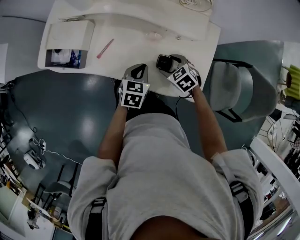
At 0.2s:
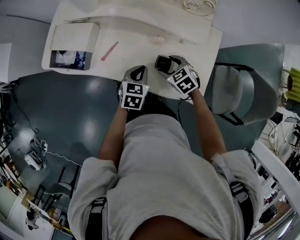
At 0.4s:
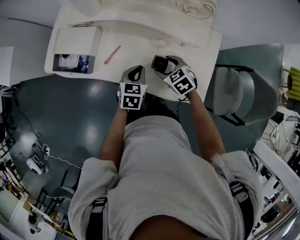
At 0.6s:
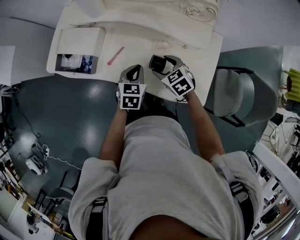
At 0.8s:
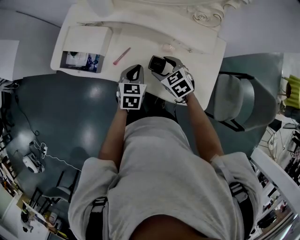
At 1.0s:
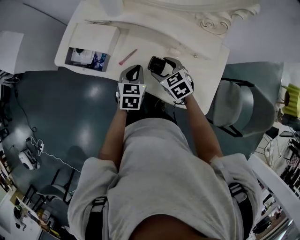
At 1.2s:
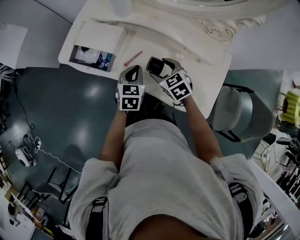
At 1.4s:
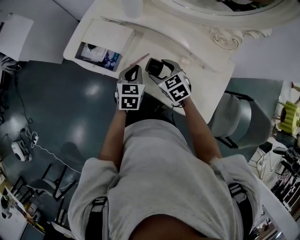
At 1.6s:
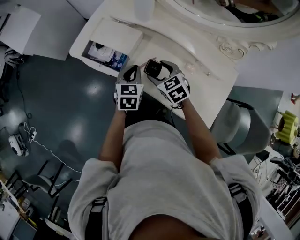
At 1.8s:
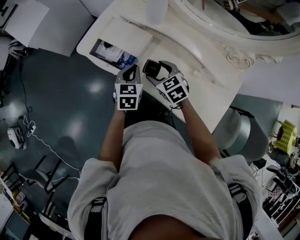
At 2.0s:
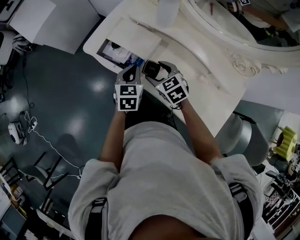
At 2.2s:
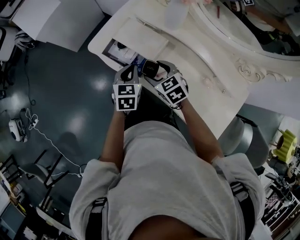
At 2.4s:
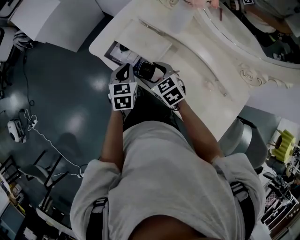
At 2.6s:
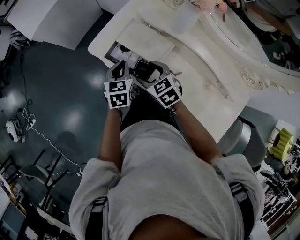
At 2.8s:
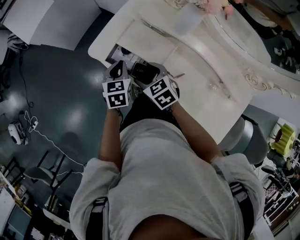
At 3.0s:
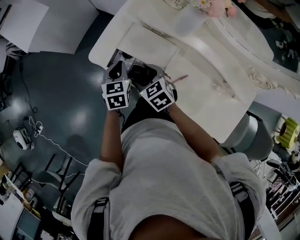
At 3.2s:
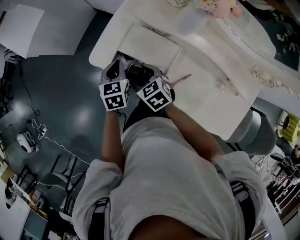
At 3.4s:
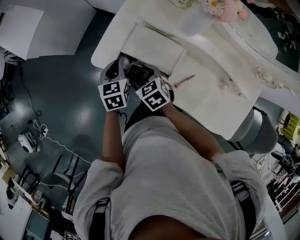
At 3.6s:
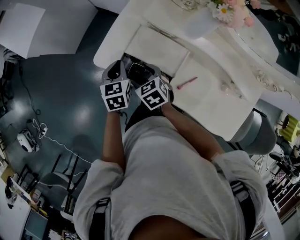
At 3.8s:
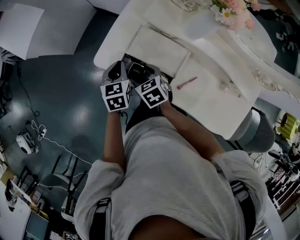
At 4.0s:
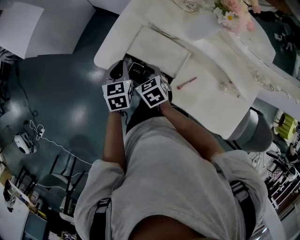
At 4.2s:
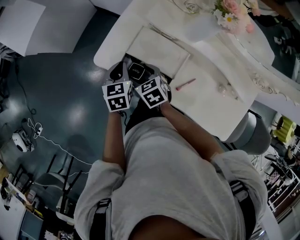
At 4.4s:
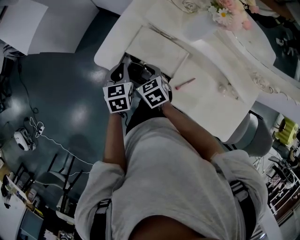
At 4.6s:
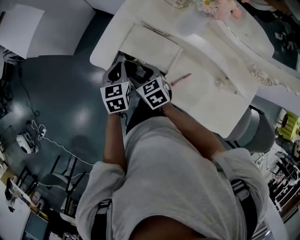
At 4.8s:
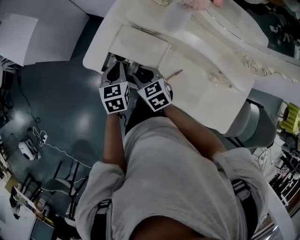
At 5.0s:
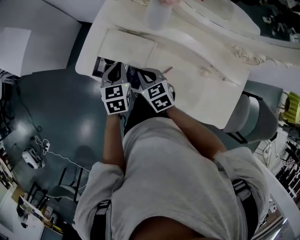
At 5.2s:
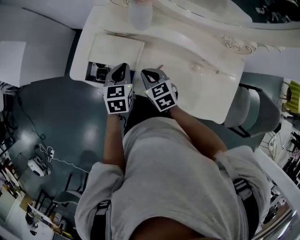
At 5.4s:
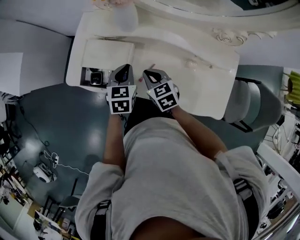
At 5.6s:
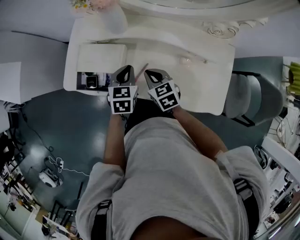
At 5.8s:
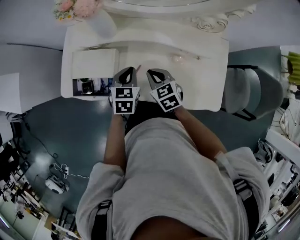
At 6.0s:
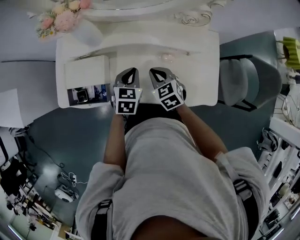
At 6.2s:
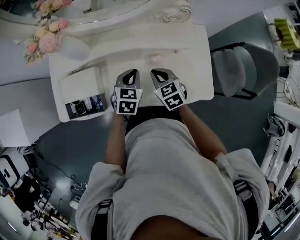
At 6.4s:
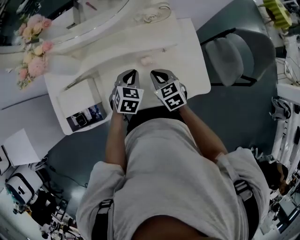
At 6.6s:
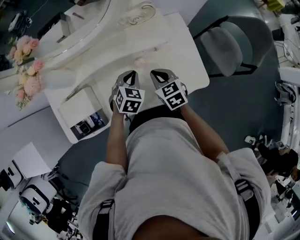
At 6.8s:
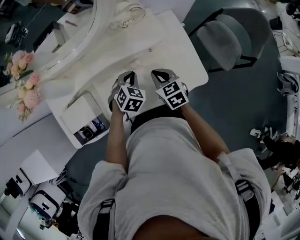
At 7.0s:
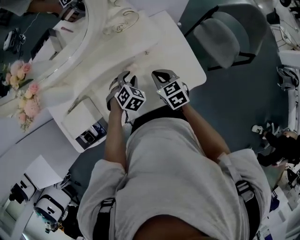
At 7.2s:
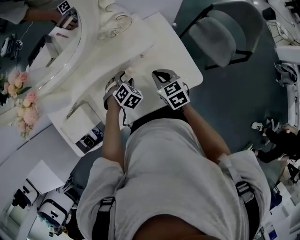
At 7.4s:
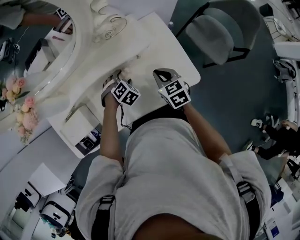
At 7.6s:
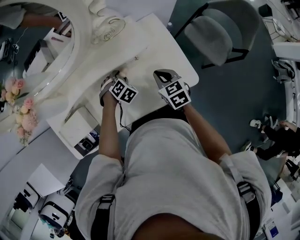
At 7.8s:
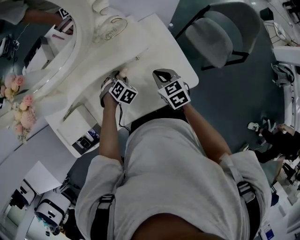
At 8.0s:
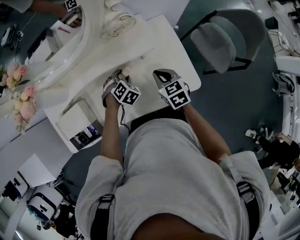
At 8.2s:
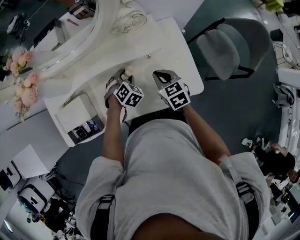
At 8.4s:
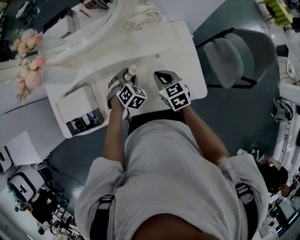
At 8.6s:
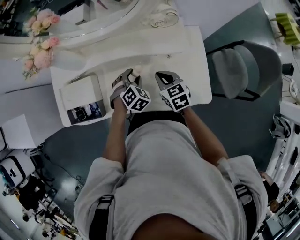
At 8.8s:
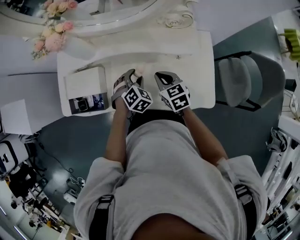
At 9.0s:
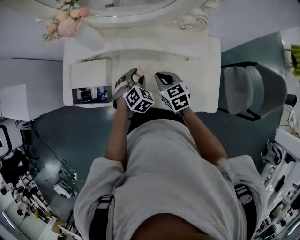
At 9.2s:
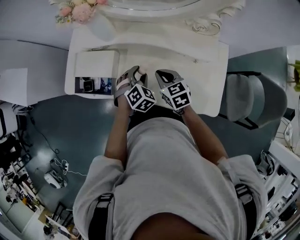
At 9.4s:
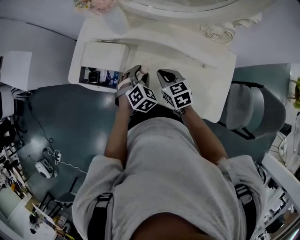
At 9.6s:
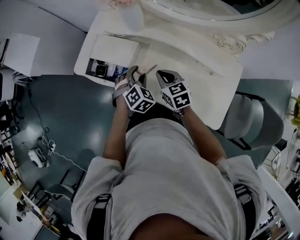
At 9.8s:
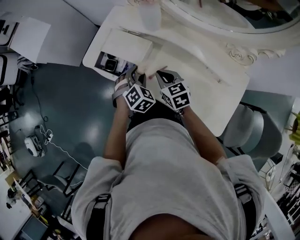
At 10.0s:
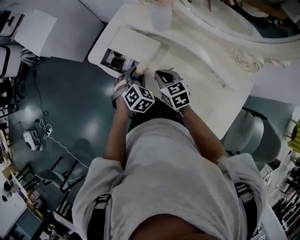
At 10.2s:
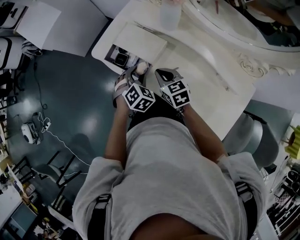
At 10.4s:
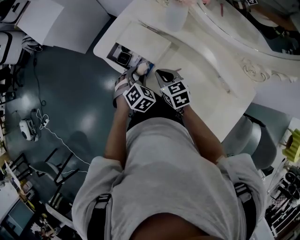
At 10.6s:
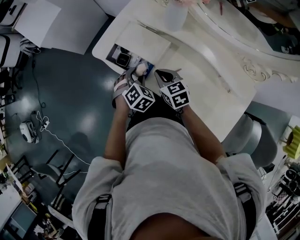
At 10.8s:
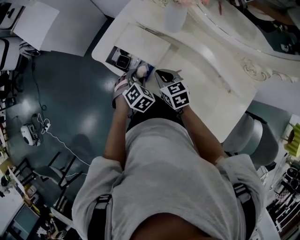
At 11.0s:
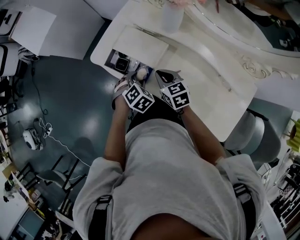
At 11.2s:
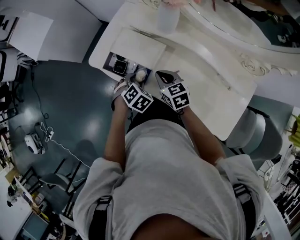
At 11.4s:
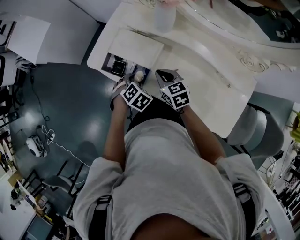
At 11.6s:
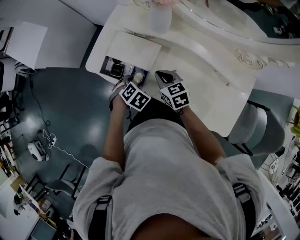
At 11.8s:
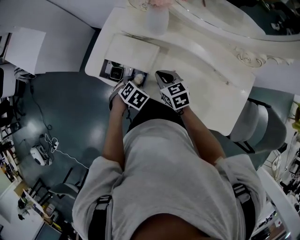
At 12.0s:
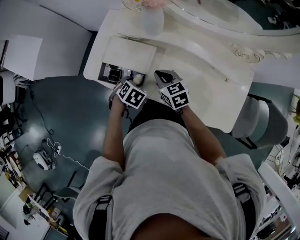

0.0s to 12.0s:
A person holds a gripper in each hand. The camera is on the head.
0.0s to 1.6s: The left gripper shifts some 25 cm to the left and forward, and swivels some 30 degrees. The right gripper moves to the left, upward and forward, roughly 25 cm.
1.6s to 3.0s: The left gripper goes about 25 cm forward and to the left. The right gripper goes roughly 25 cm to the left and forward.
3.0s to 4.4s: The right gripper ends up about 5 cm from where it was.
4.4s to 6.0s: The left gripper moves roughly 40 cm, and rotates about 50 degrees. Meanwhile the right gripper shifts by roughly 40 cm, changes its angle by about 30 degrees, and closes its fingers.
6.0s to 7.6s: The right gripper is displaced to the right by approximately 25 cm, and changes its angle by about 40 degrees; the left gripper goes approximately 20 cm to the right, downward and forward, rotates around the line of its fingers by roughly 60 degrees, clockwise from behind, and opens up.
7.6s to 9.0s: The right gripper shifts by some 20 cm, and turns by approximately 30 degrees, while the left gripper shifts by some 15 cm, and turns by some 40 degrees.
9.0s to 10.4s: The left gripper changes place by roughly 25 cm, and turns by roughly 30 degrees. The right gripper shifts by approximately 25 cm, and turns by roughly 30 degrees.
10.4s to 12.0s: The right gripper changes place by approximately 5 cm. Meanwhile the left gripper moves downward, roughly 5 cm, and changes its angle by roughly 30 degrees.

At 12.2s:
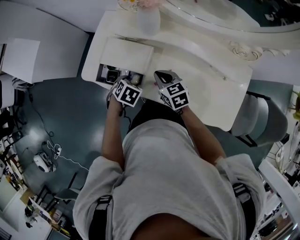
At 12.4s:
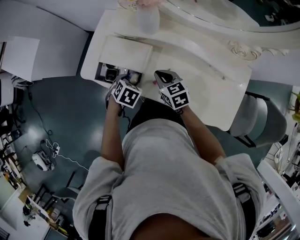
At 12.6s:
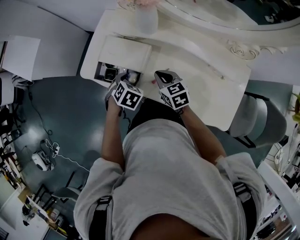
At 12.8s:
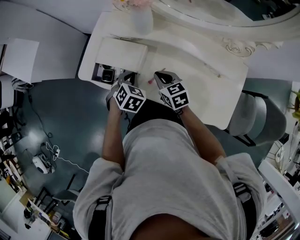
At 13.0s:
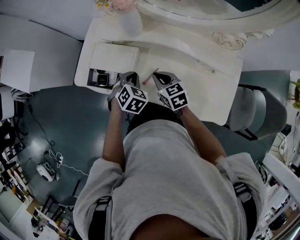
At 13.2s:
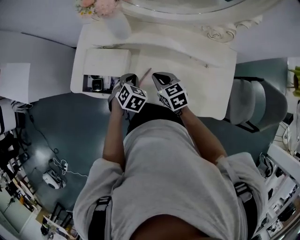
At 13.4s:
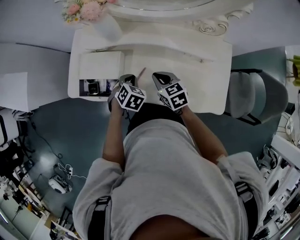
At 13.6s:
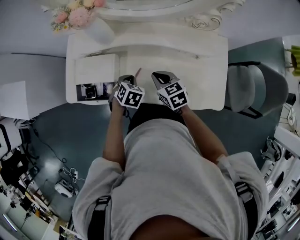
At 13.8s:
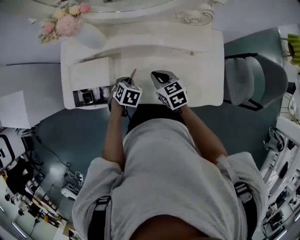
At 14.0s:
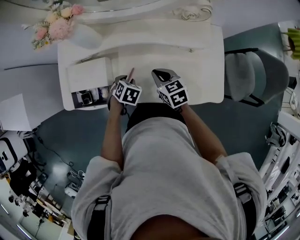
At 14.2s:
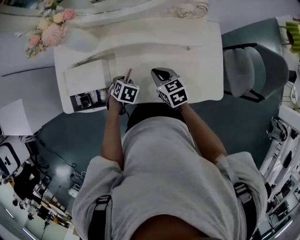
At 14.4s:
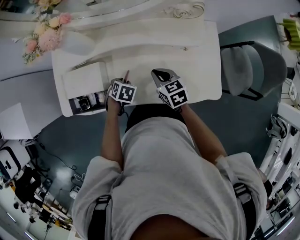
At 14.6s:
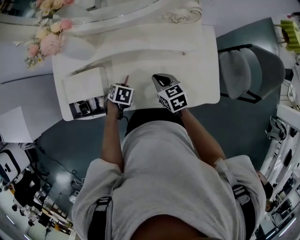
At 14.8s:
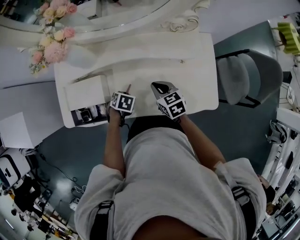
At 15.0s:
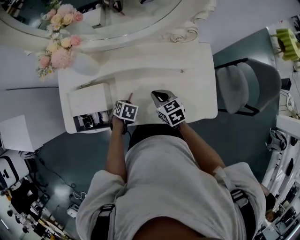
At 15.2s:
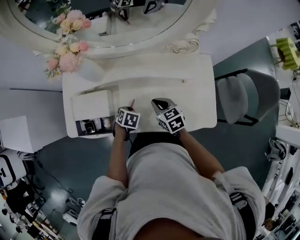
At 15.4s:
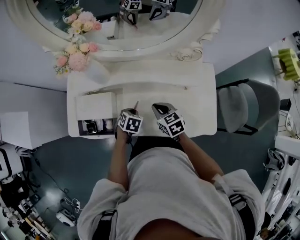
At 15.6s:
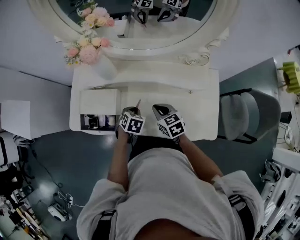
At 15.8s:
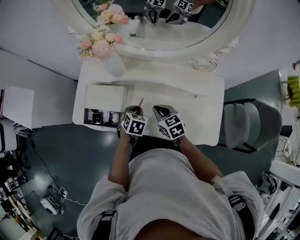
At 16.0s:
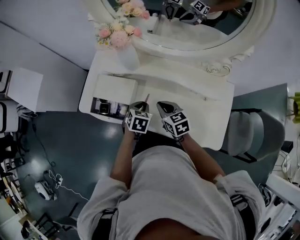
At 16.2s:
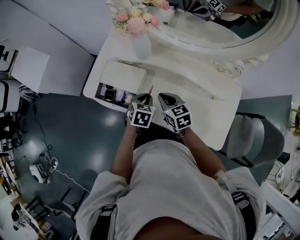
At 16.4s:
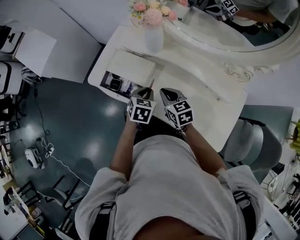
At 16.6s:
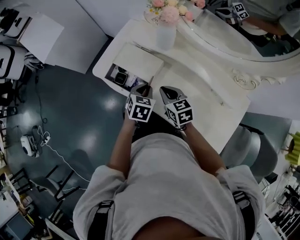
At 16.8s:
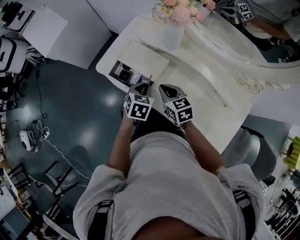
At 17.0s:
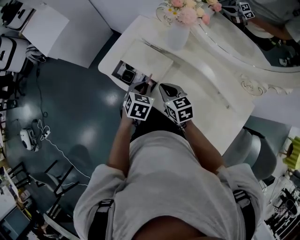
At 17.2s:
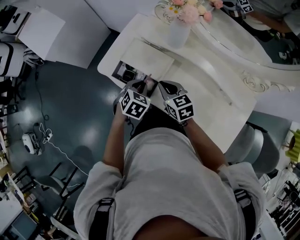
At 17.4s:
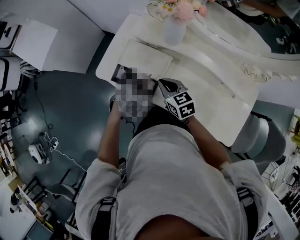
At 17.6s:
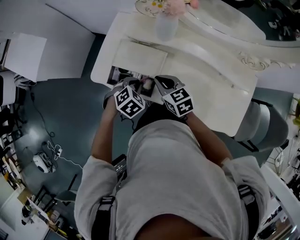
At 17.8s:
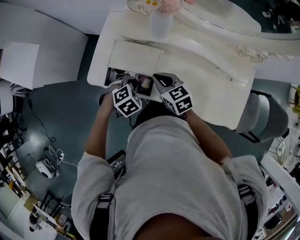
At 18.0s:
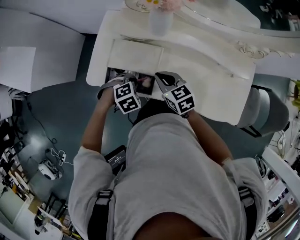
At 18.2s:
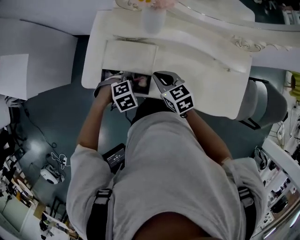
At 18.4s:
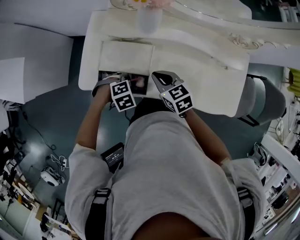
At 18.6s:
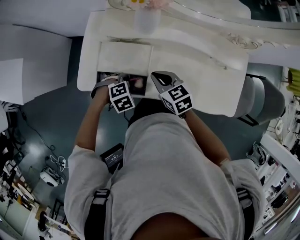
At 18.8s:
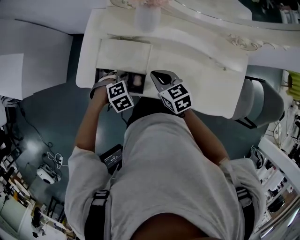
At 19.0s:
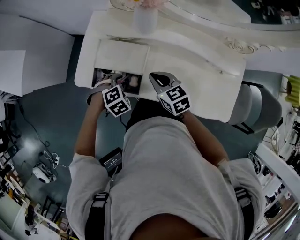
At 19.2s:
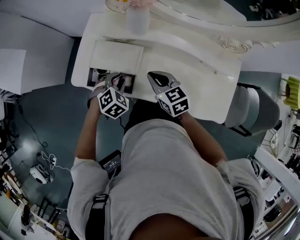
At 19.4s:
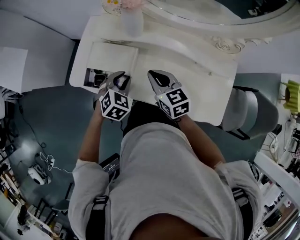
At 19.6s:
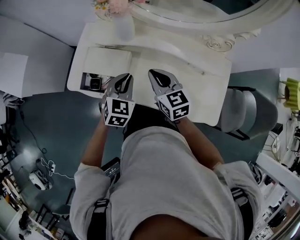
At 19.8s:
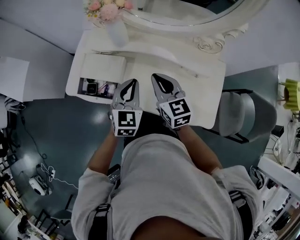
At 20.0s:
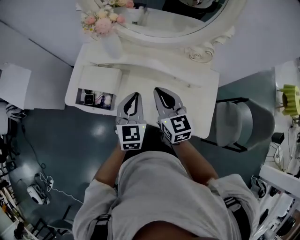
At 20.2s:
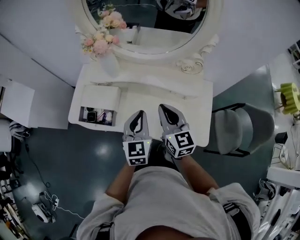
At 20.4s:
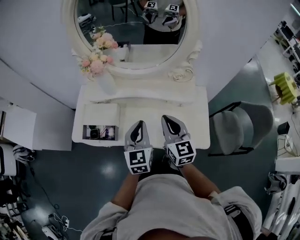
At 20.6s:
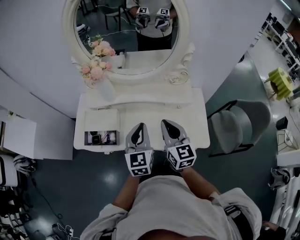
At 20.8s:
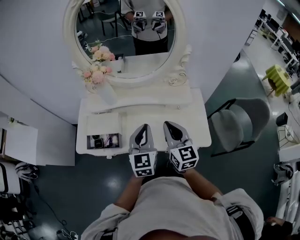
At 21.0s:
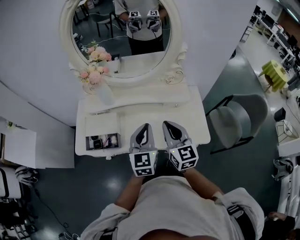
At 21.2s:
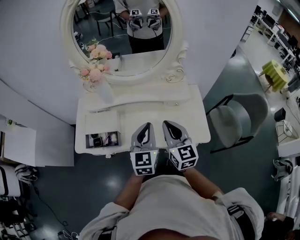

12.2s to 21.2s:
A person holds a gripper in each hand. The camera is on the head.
12.2s to 13.8s: The left gripper moves about 5 cm upward and comes back, and closes up, while the right gripper shifts by approximately 15 cm.
13.8s to 15.2s: There are only small adjustments of the grippers.
15.2s to 16.6s: The right gripper ends up about 20 cm from where it was, and turns by approximately 30 degrees, while the left gripper goes approximately 15 cm upward, and swivels approximately 40 degrees.
16.6s to 18.2s: The right gripper shifts by roughly 5 cm, while the left gripper changes place by some 10 cm, and rotates around the line of its fingers by approximately 60 degrees, clockwise from behind.
18.2s to 19.8s: The left gripper moves some 25 cm, and angles its fingers upward, by about 50 degrees, while the right gripper ends up some 20 cm from where it was, and turns by some 20 degrees.
19.8s to 21.2s: The right gripper goes approximately 15 cm backward, to the right and upward, and rotates approximately 30 degrees; the left gripper heads to the right, upward and backward, covering some 15 cm.

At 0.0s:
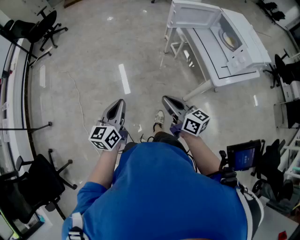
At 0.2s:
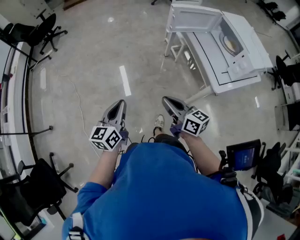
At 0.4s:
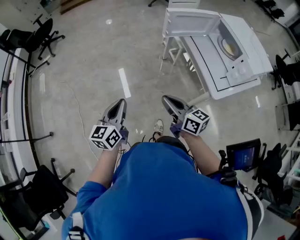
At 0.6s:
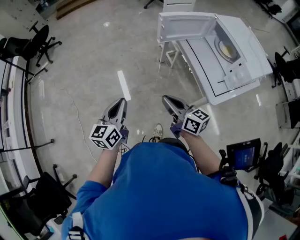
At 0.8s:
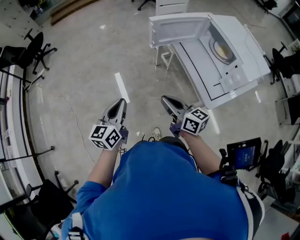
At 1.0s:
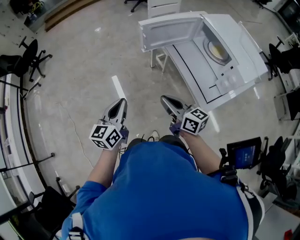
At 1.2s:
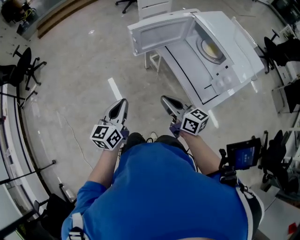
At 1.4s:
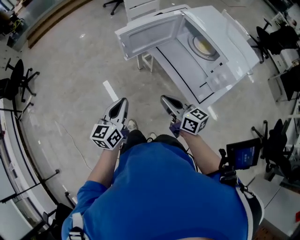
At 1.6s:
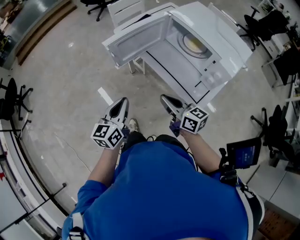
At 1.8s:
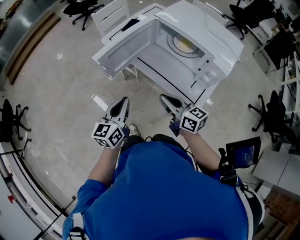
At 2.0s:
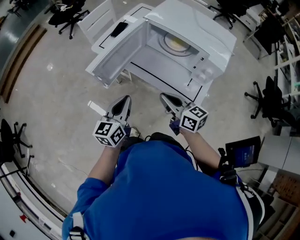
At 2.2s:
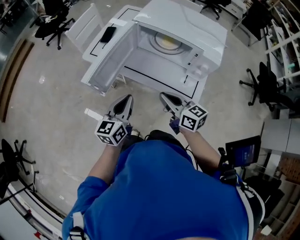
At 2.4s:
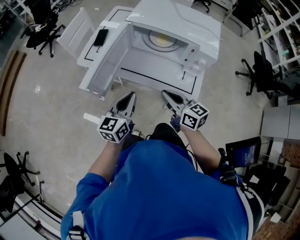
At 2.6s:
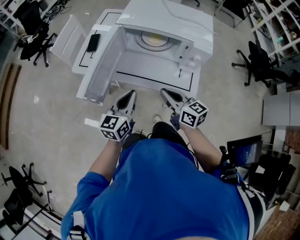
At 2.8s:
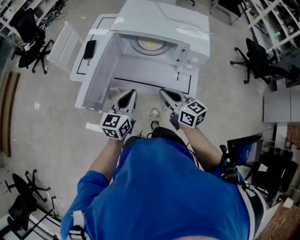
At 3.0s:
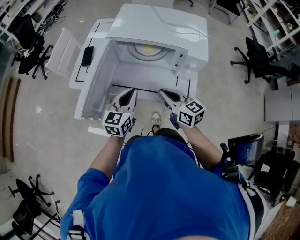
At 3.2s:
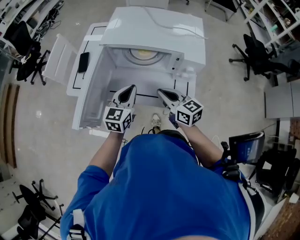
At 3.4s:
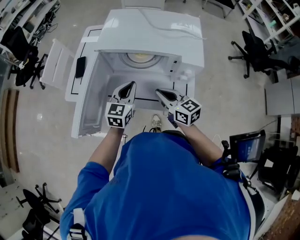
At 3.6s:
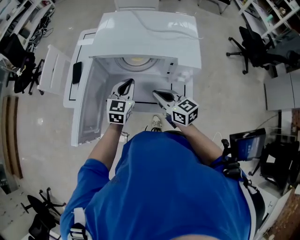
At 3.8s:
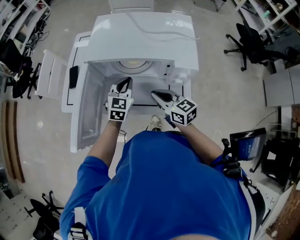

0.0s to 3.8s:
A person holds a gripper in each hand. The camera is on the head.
0.0s to 1.2s: Both grippers travel together forward and to the right, roughly 30 cm.
1.2s to 2.6s: The right gripper changes place by some 15 cm, and changes its angle by approximately 50 degrees, while the left gripper ends up approximately 25 cm from where it was, and turns by some 50 degrees.
2.6s to 3.8s: The left gripper is displaced forward and to the right by approximately 25 cm, and swivels roughly 30 degrees. Meanwhile the right gripper shifts roughly 10 cm forward.
